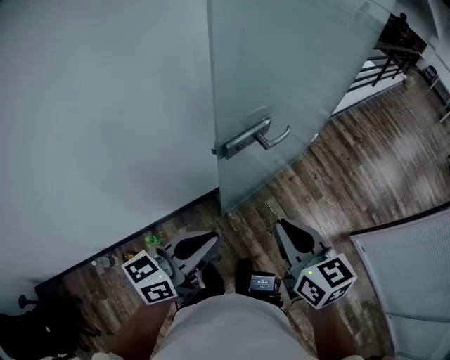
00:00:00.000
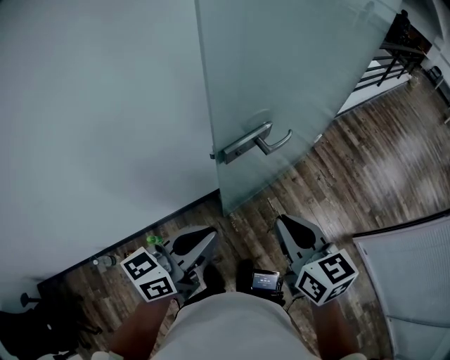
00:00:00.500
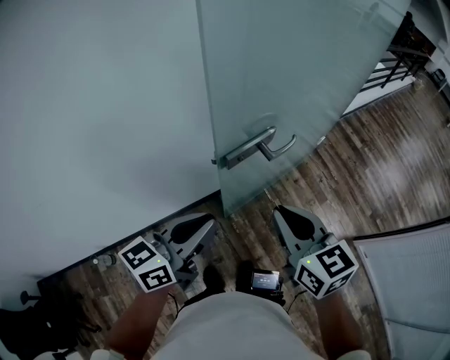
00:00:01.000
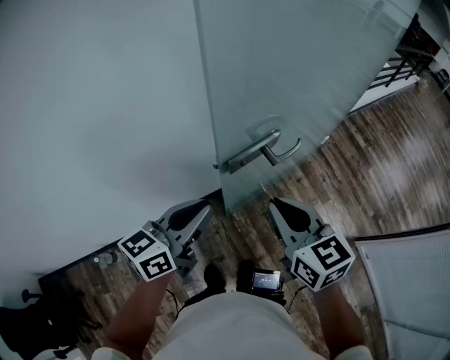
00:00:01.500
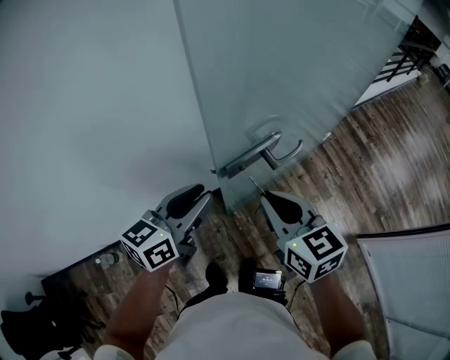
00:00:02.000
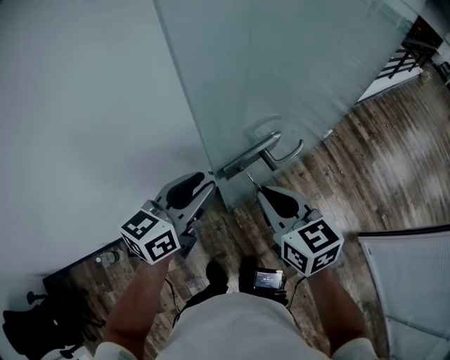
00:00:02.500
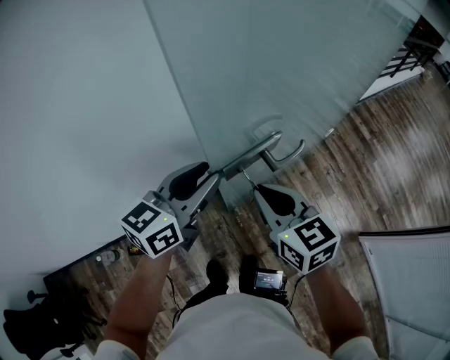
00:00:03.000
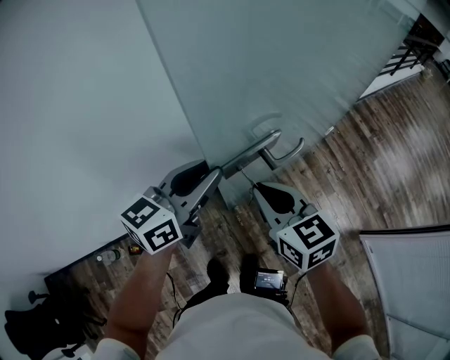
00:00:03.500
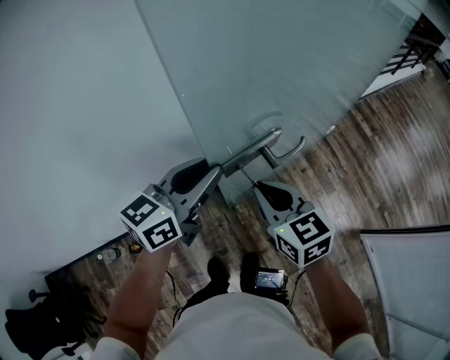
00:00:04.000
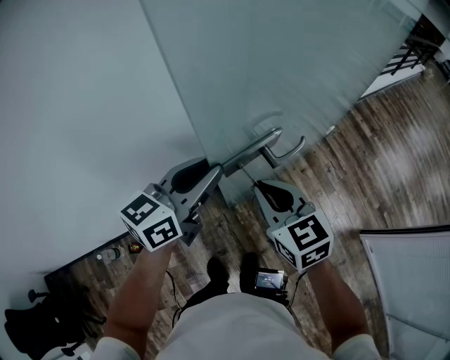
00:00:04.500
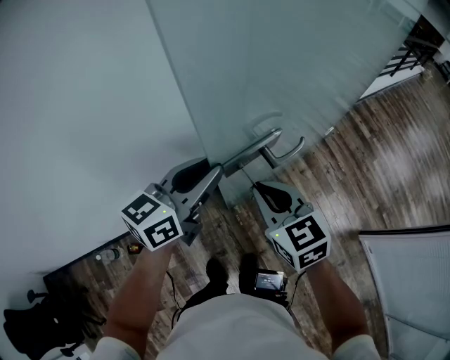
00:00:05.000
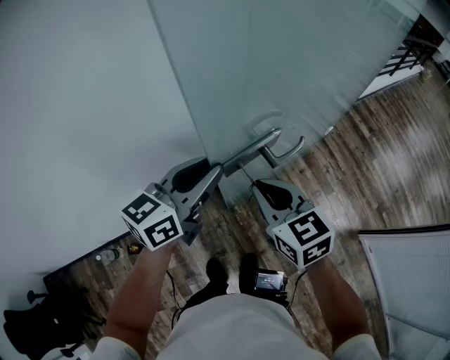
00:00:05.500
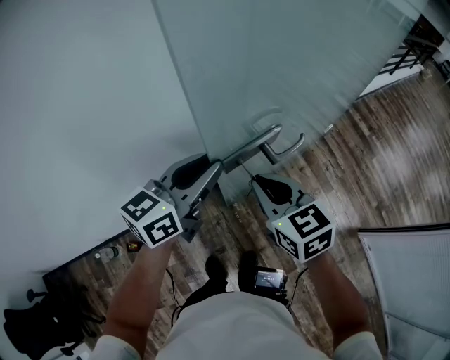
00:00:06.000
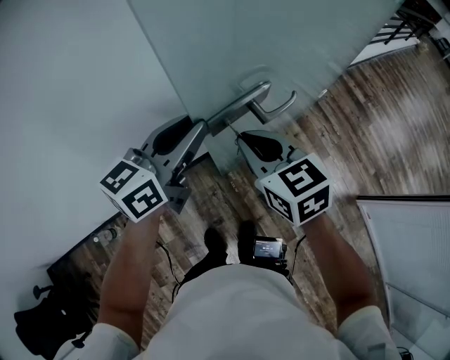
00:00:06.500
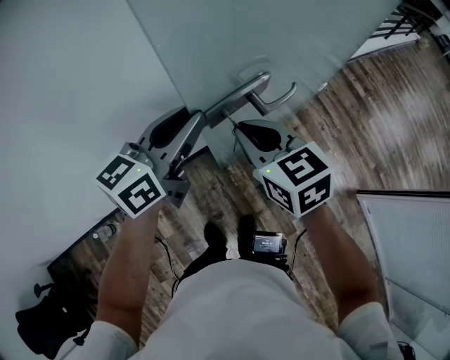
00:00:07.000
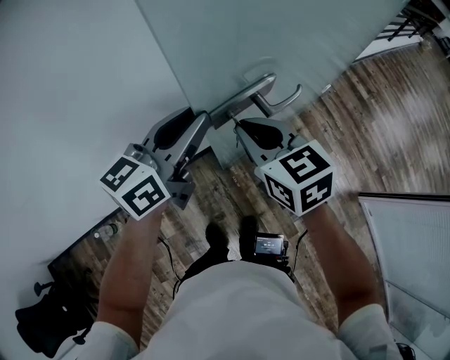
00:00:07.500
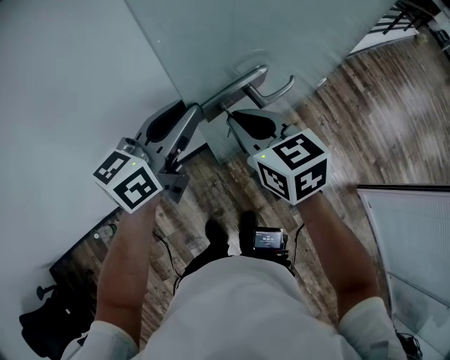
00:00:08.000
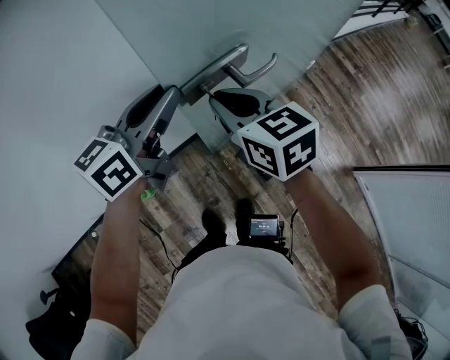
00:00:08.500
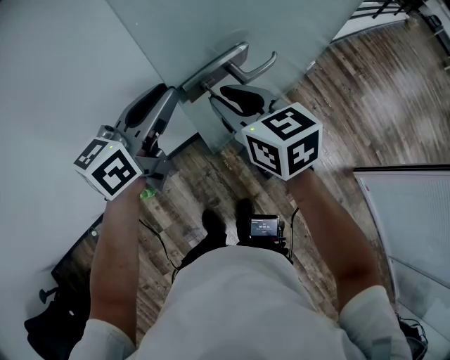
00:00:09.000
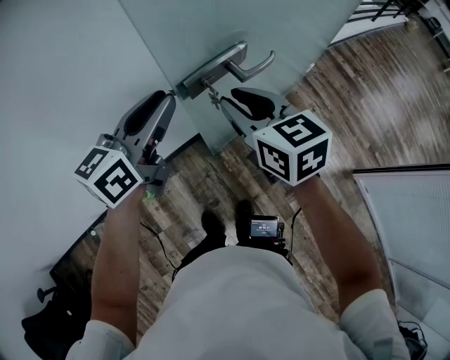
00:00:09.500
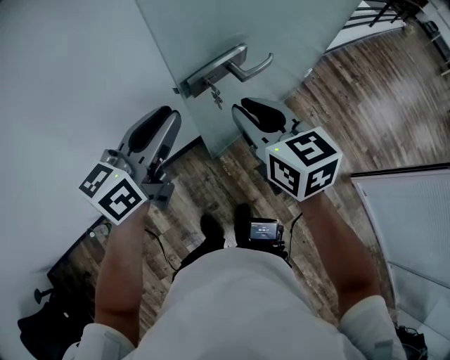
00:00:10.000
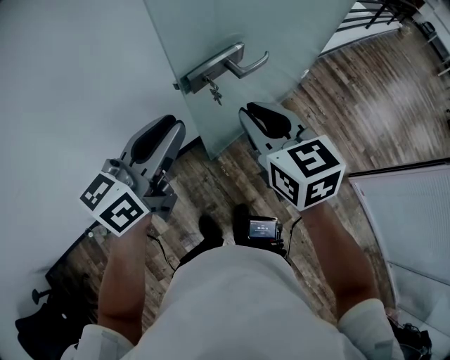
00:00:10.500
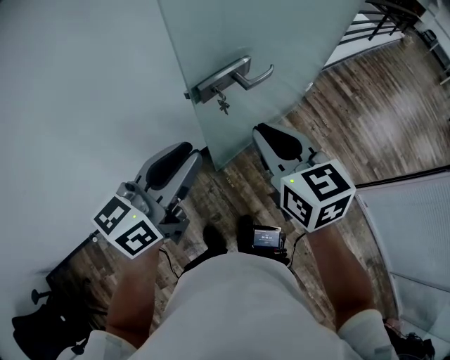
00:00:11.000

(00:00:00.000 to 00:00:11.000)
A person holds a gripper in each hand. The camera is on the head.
00:00:00.000 - 00:00:02.000: The two grippers go approximately 15 cm forward.
00:00:02.000 - 00:00:03.500: The left gripper changes place by some 5 cm.
00:00:03.500 - 00:00:09.000: The grippers make only small movements.
00:00:09.000 - 00:00:11.000: The right gripper is displaced backward and to the right by some 10 cm; the left gripper heads backward, covering some 15 cm.

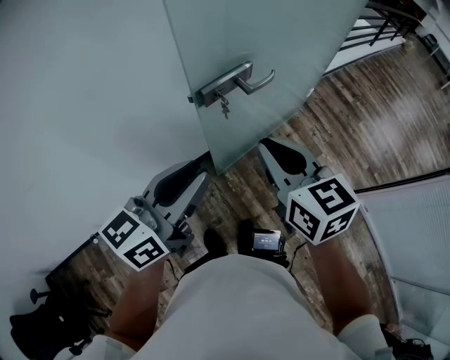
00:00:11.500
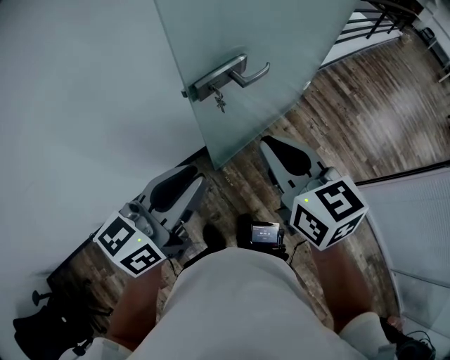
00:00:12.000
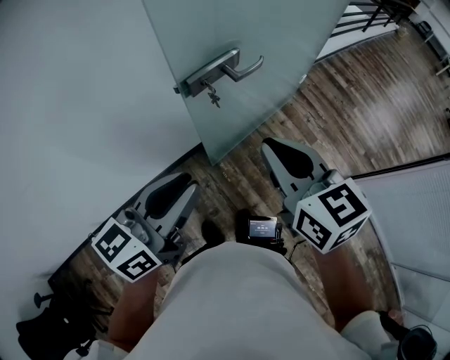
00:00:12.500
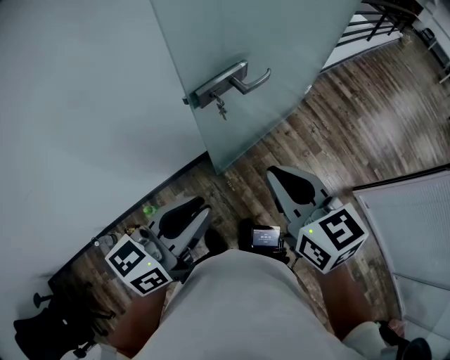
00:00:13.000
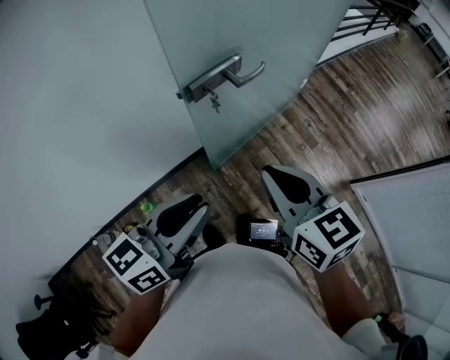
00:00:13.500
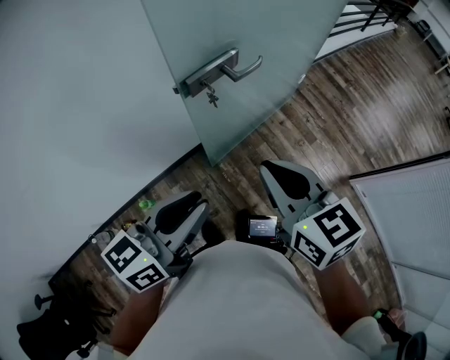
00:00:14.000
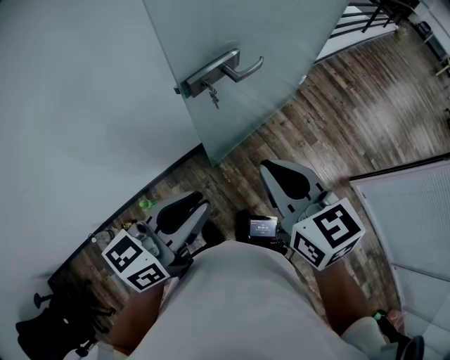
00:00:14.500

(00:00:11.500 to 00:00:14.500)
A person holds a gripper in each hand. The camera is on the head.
00:00:11.500 - 00:00:13.000: The left gripper is displaced backward by approximately 5 cm. Meanwhile the right gripper changes place by roughly 5 cm.
00:00:13.000 - 00:00:14.500: The grippers stay close to where they were, moving slightly.

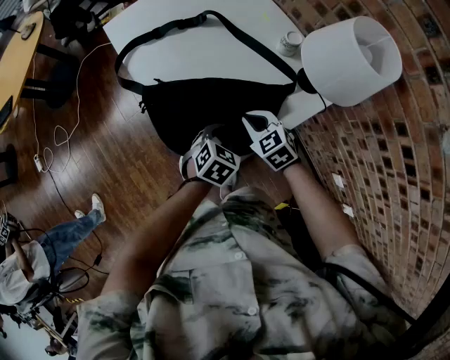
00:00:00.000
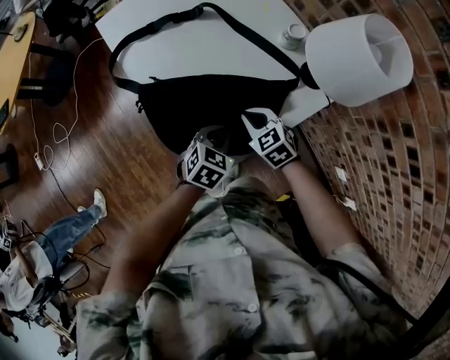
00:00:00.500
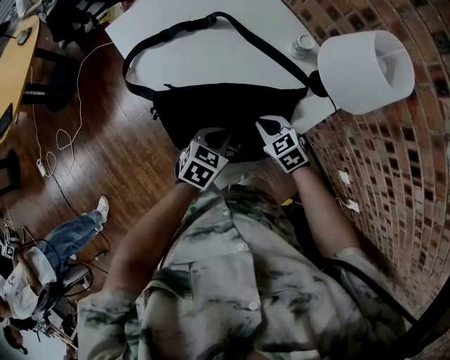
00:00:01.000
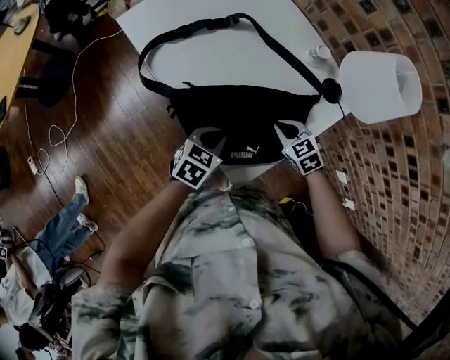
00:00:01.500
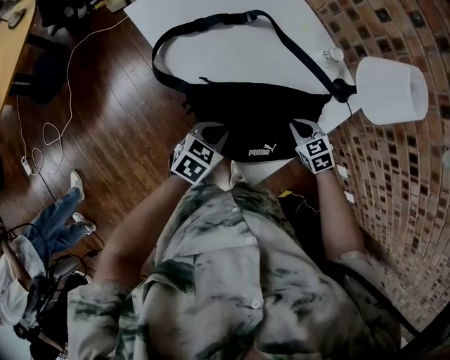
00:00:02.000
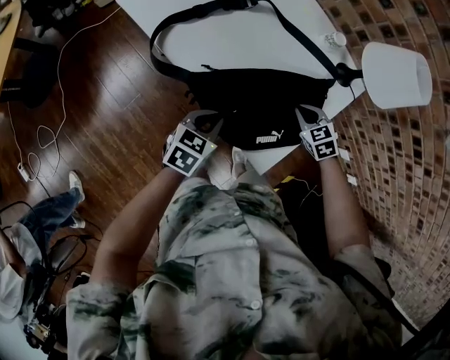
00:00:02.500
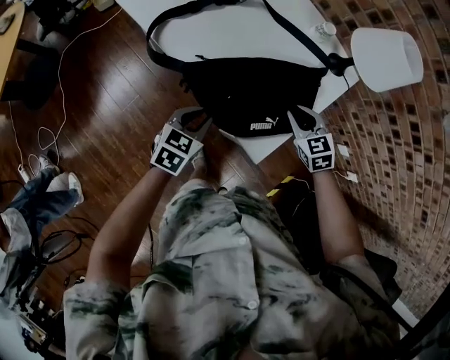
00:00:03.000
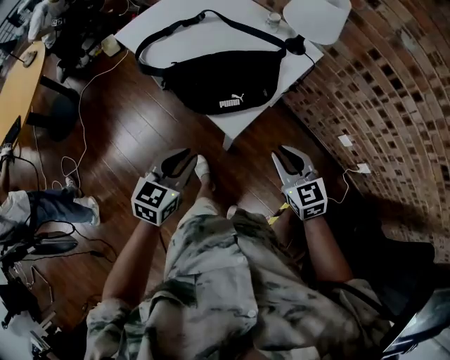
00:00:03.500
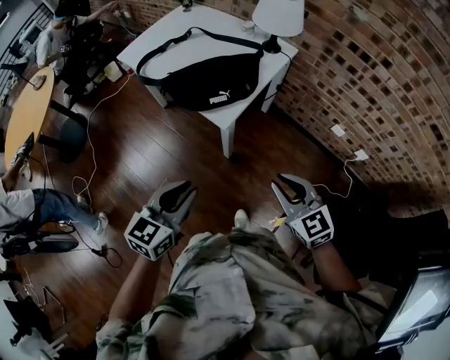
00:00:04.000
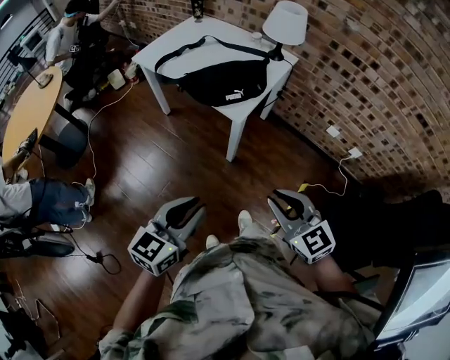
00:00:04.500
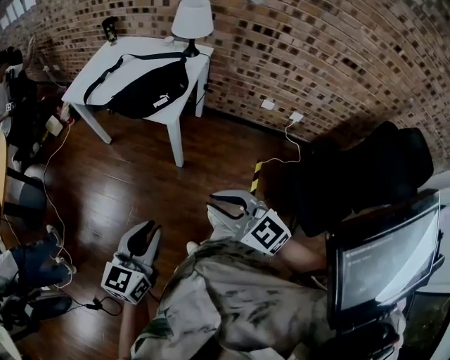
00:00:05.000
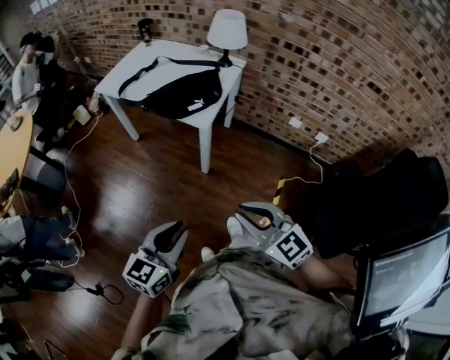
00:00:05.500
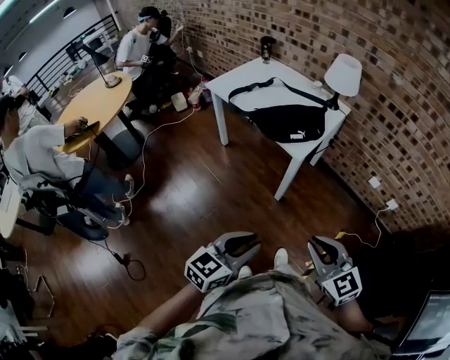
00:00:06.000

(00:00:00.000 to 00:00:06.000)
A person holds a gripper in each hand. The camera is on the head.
00:00:00.000 - 00:00:02.000: The left gripper shifts approximately 15 cm to the left, rotates some 20 degrees, and closes.
00:00:02.000 - 00:00:04.000: Both grippers travel together backward and upward, roughly 50 cm. The left gripper rotates some 20 degrees; the right gripper tips its fingers upward by roughly 30 degrees.
00:00:04.000 - 00:00:06.000: The right gripper shifts roughly 25 cm backward and to the left. Meanwhile the left gripper travels backward by approximately 20 cm.

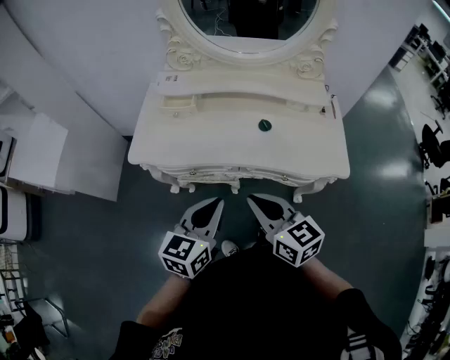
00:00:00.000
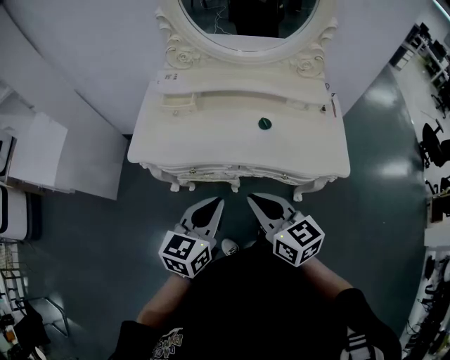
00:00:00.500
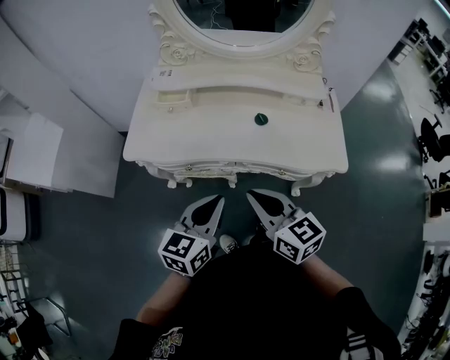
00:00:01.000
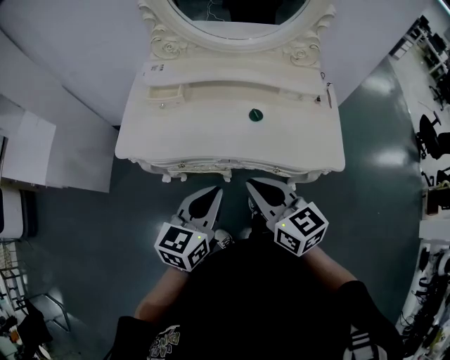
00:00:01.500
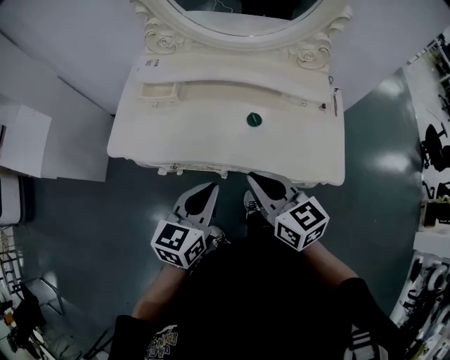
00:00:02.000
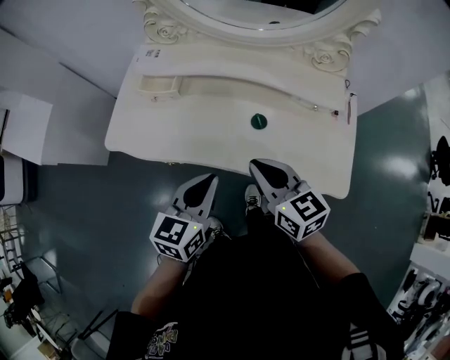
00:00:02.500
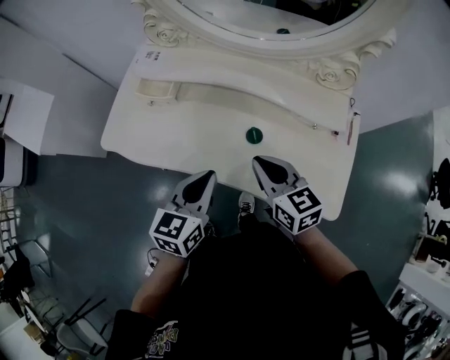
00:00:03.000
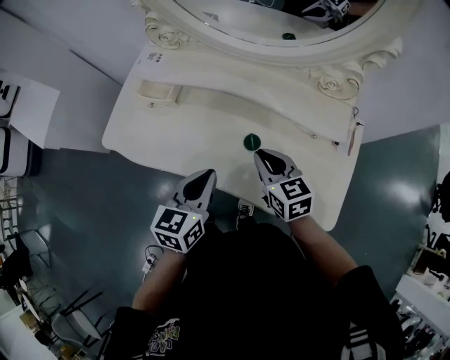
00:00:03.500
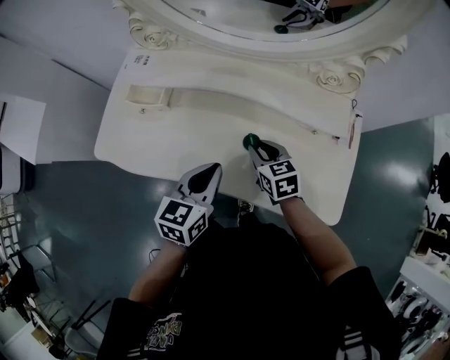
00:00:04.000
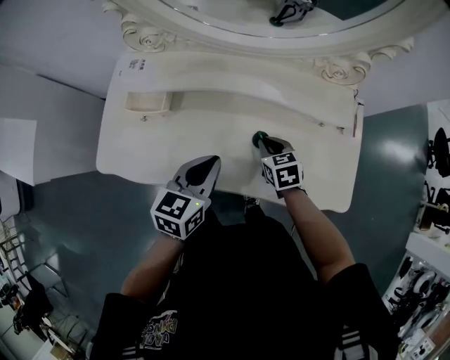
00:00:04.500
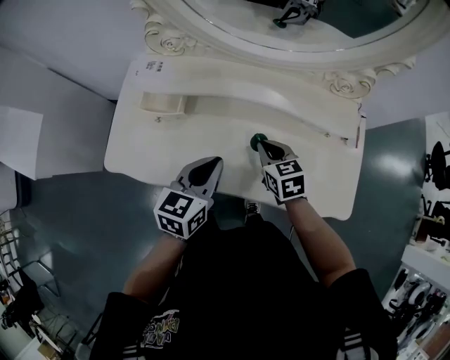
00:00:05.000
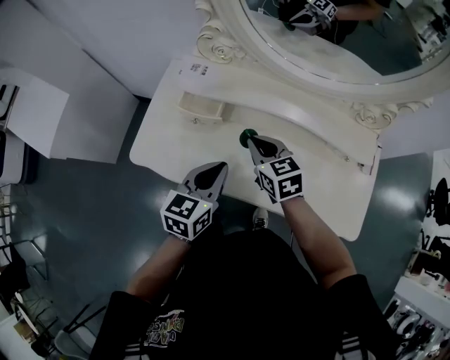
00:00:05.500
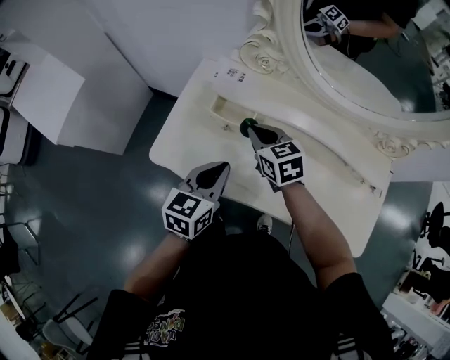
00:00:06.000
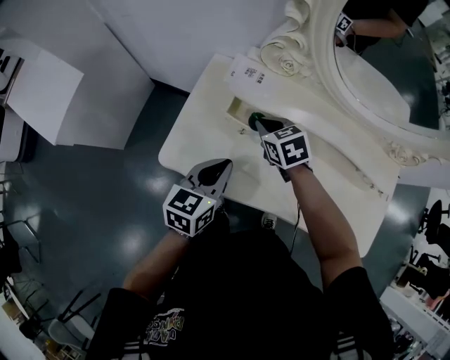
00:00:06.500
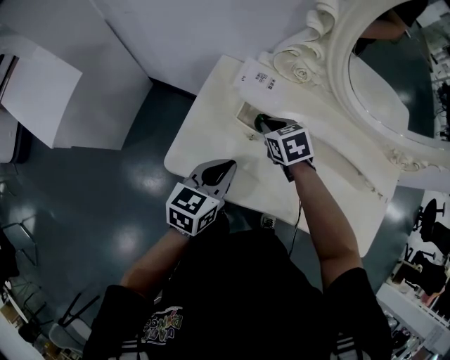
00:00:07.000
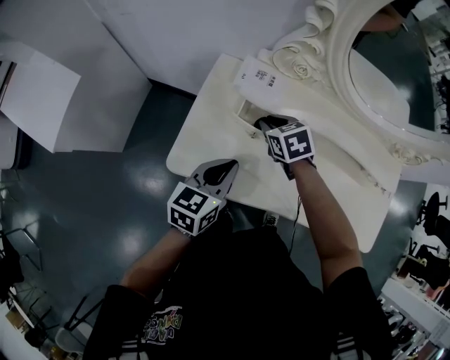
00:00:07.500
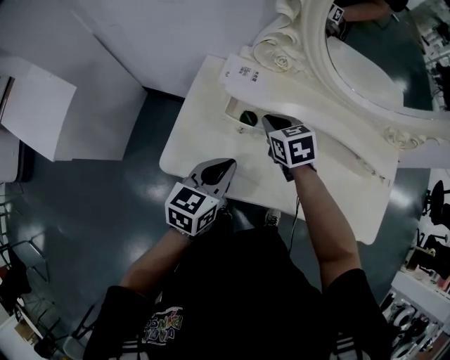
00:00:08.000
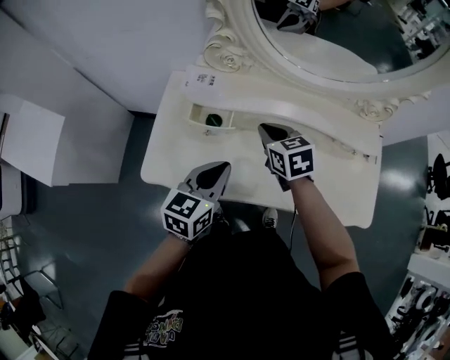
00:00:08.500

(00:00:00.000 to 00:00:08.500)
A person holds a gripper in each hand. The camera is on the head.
00:00:00.000 - 00:00:02.000: The two grippers go approximately 10 cm forward and to the right.
00:00:02.000 - 00:00:04.000: The right gripper travels forward, downward and to the right by about 30 cm, and changes its angle by roughly 20 degrees, while the left gripper moves forward, to the right and downward, roughly 20 cm.
00:00:04.000 - 00:00:06.500: The left gripper goes about 30 cm to the left; the right gripper travels to the left and forward by about 35 cm.
00:00:06.500 - 00:00:08.500: The right gripper is displaced to the right and upward by approximately 15 cm. The left gripper heads to the right, covering about 10 cm.
